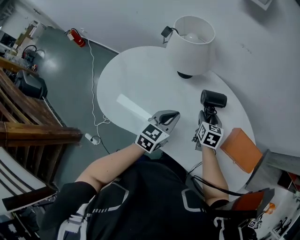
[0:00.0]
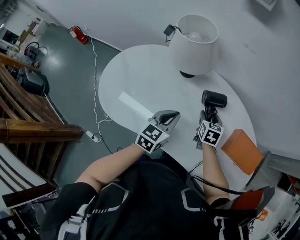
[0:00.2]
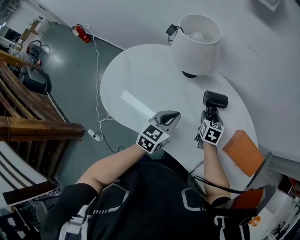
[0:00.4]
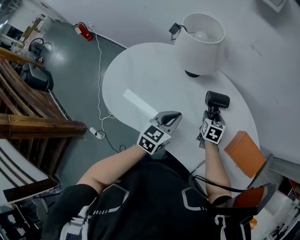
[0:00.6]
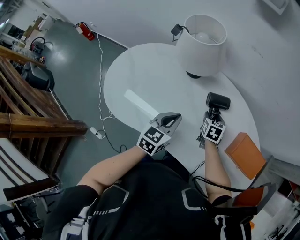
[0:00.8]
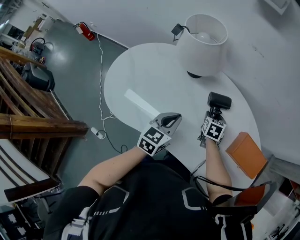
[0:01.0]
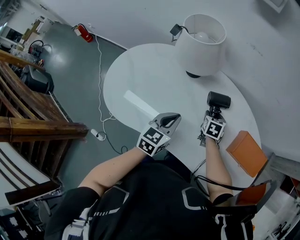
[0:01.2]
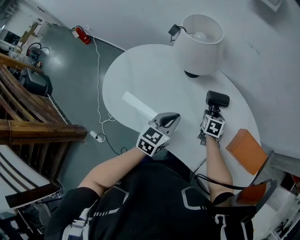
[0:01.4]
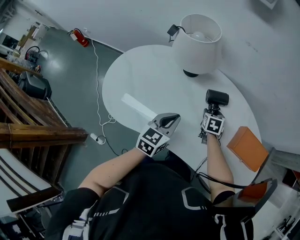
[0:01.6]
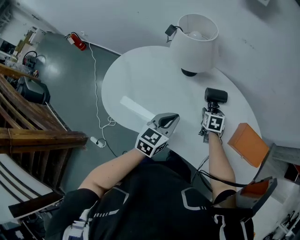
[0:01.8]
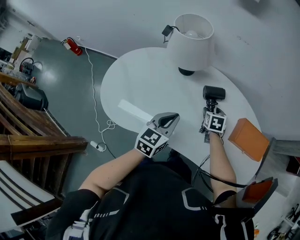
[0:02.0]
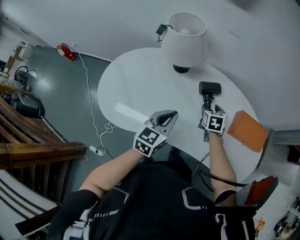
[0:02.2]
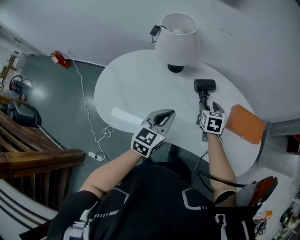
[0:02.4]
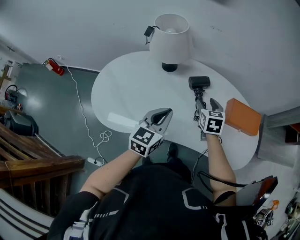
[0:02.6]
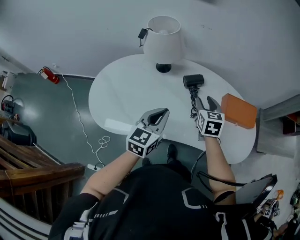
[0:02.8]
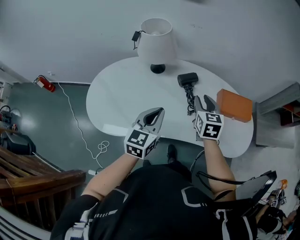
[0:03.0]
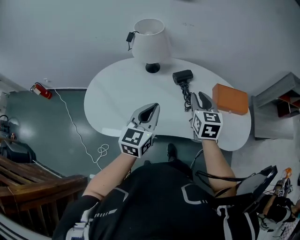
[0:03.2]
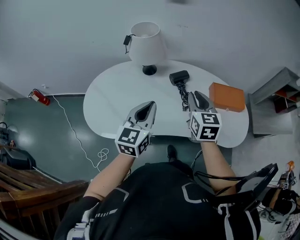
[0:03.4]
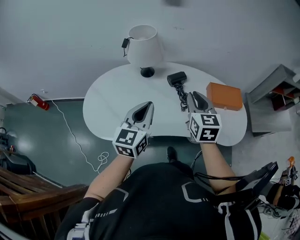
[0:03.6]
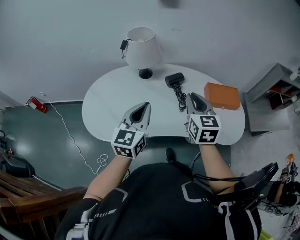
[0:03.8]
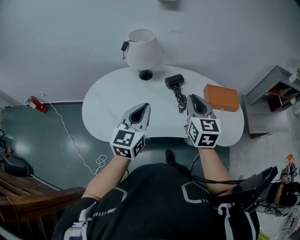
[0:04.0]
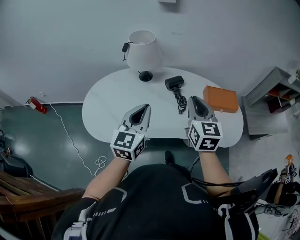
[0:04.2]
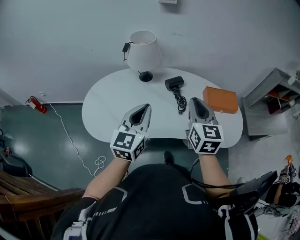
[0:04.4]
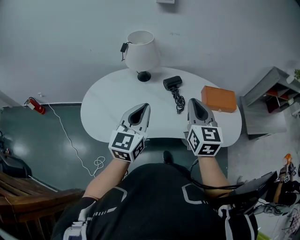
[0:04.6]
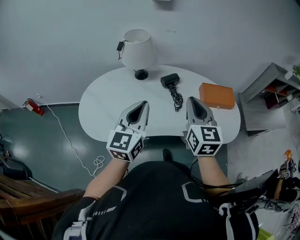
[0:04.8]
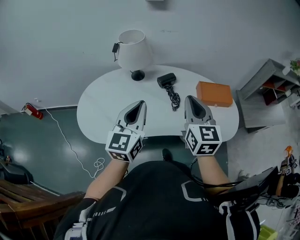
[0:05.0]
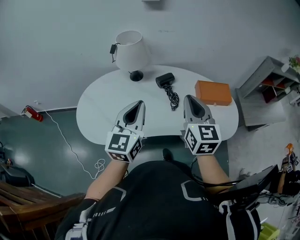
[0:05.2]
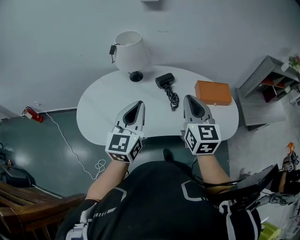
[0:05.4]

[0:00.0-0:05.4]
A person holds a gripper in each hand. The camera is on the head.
0:00.0 to 0:01.4: The right gripper travels downward by some 5 cm.
0:01.4 to 0:02.8: The right gripper shifts approximately 20 cm upward and backward, and swivels some 20 degrees, while the left gripper travels upward and backward by roughly 10 cm.
0:02.8 to 0:04.0: The right gripper moves upward and backward, approximately 20 cm, and closes. The left gripper travels upward by about 10 cm.
0:04.0 to 0:05.4: The right gripper changes place by about 5 cm.

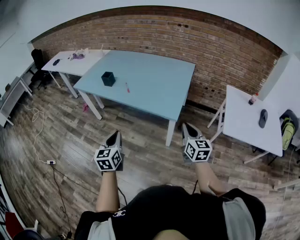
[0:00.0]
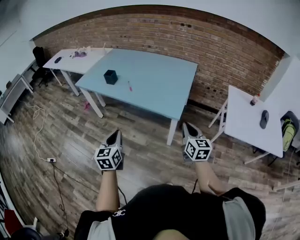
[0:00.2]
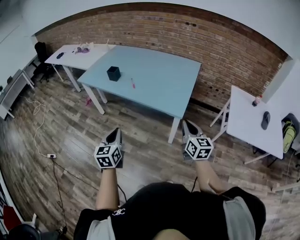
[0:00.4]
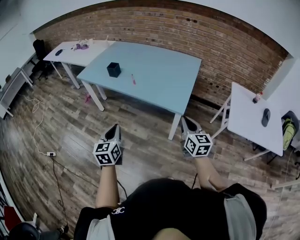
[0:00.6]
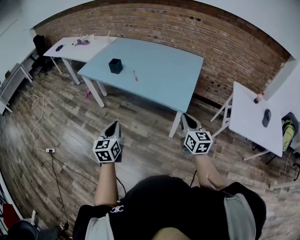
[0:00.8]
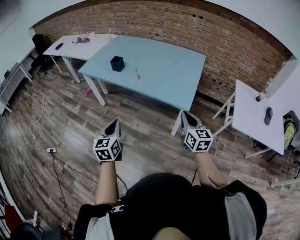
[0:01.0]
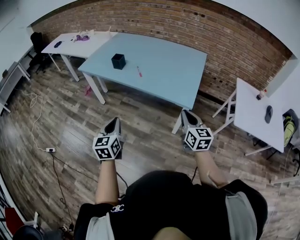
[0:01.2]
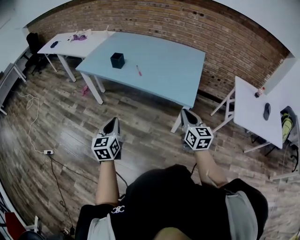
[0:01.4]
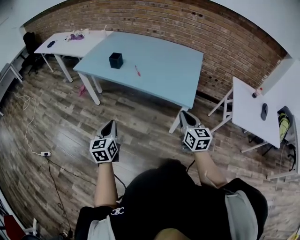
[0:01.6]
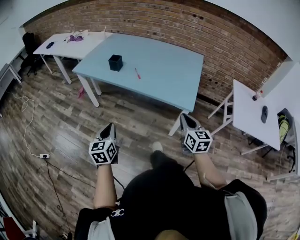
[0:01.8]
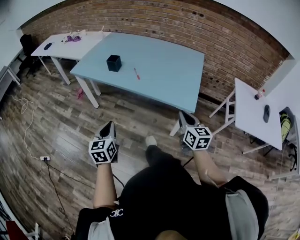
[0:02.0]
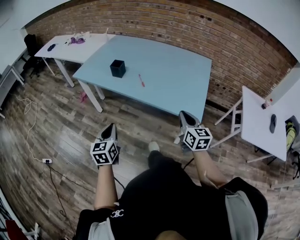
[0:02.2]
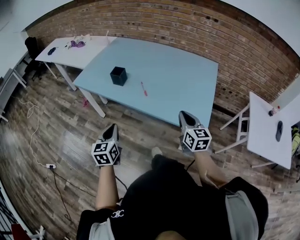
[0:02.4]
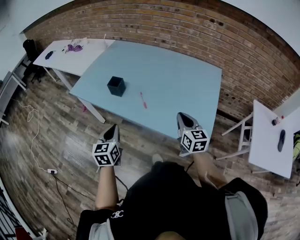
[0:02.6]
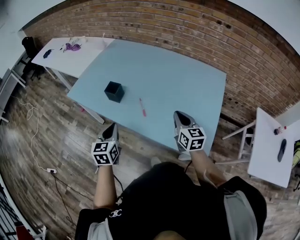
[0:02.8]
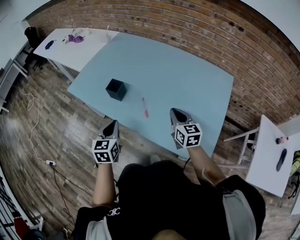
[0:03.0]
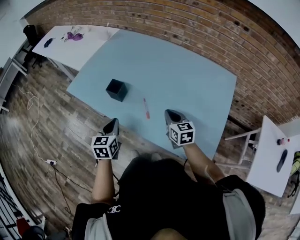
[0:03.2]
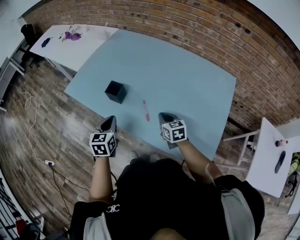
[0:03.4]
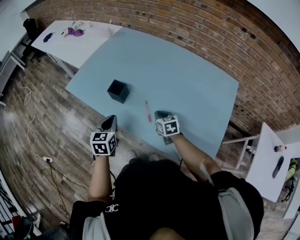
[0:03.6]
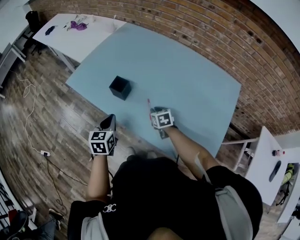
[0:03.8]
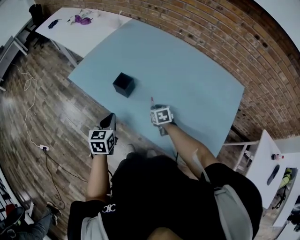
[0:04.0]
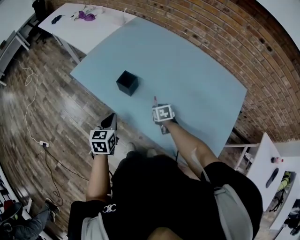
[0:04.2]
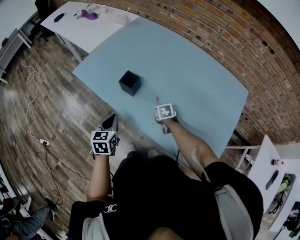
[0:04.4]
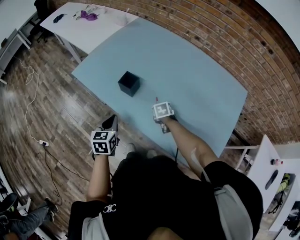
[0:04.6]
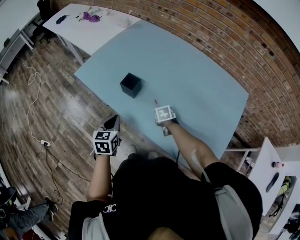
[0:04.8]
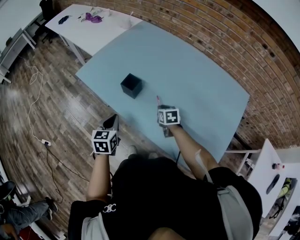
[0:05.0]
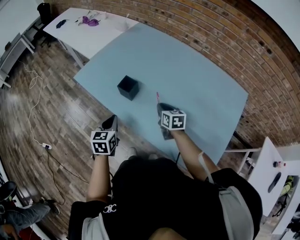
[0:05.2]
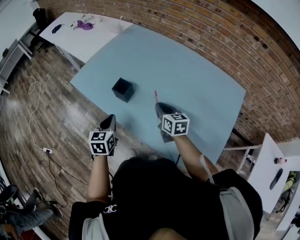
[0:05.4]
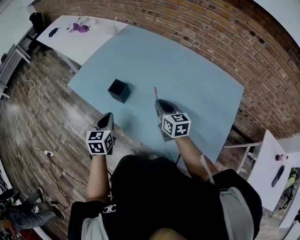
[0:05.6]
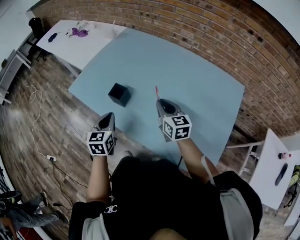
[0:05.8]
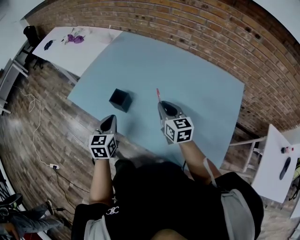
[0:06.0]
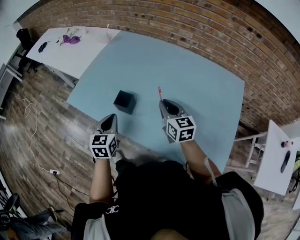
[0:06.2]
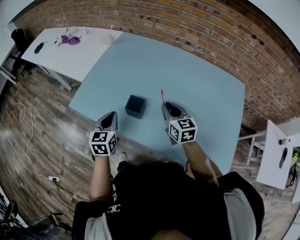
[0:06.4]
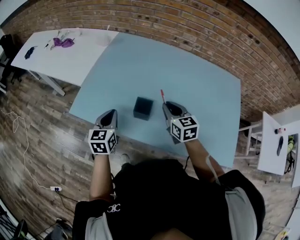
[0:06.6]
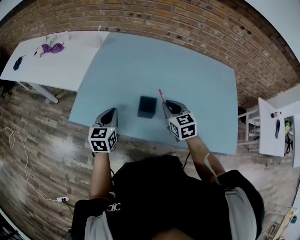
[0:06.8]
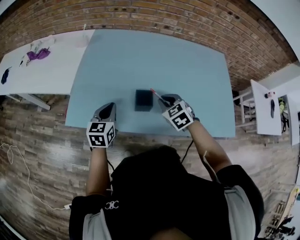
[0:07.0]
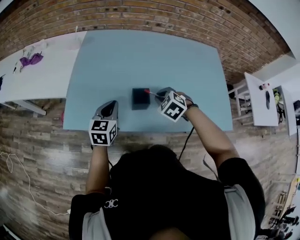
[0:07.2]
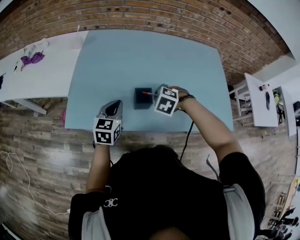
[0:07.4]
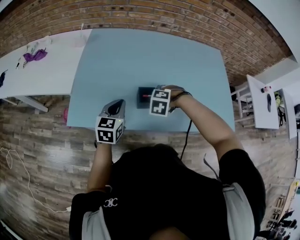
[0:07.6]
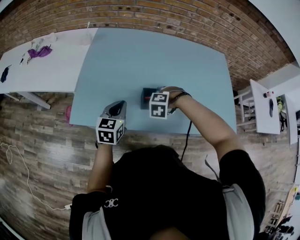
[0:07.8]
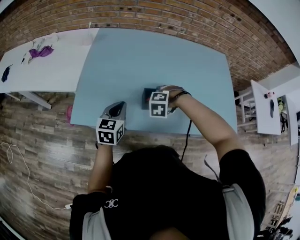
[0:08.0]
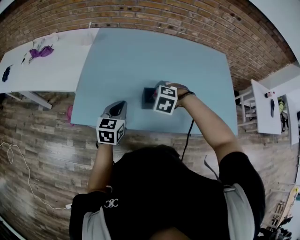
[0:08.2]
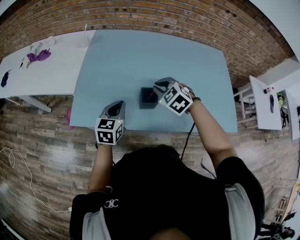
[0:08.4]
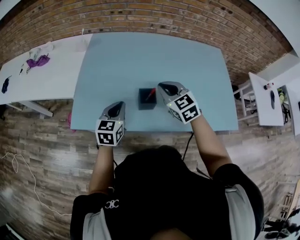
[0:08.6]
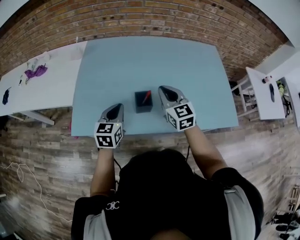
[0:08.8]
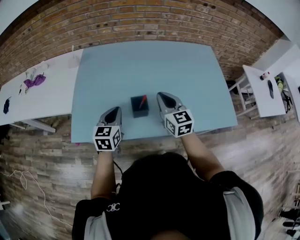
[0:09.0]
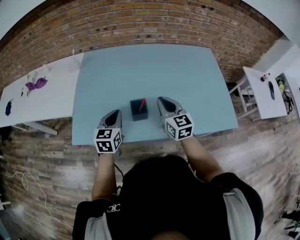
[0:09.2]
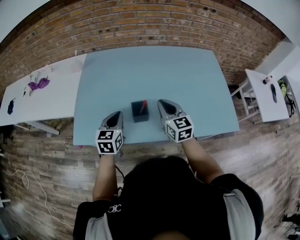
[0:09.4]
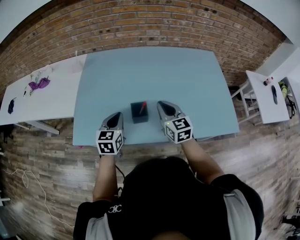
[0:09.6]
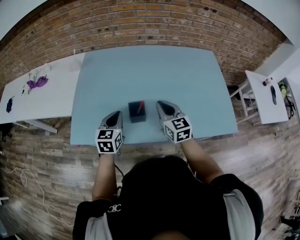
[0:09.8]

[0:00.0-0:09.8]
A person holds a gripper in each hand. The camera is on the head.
0:00.0 to 0:01.4: The grippers both shift to the left by approximately 15 cm.
0:01.4 to 0:02.8: The two grippers go some 35 cm forward.
0:02.8 to 0:04.2: The left gripper shifts some 10 cm forward, downward and to the left. Meanwhile the right gripper moves downward, forward and to the left, some 30 cm, angles its fingers downward, by some 40 degrees, and opens its fingers.
0:04.2 to 0:05.6: The right gripper heads upward, covering some 20 cm, and tilts its fingers approximately 40 degrees upward.
0:05.6 to 0:07.0: The left gripper changes place by approximately 25 cm, and rotates approximately 40 degrees. Meanwhile the right gripper moves roughly 15 cm, and swivels roughly 40 degrees.
0:07.0 to 0:08.4: The right gripper ends up some 10 cm from where it was.
0:08.4 to 0:09.8: The right gripper goes roughly 10 cm to the right, and tilts its fingers roughly 30 degrees upward; the left gripper ends up roughly 5 cm from where it was.

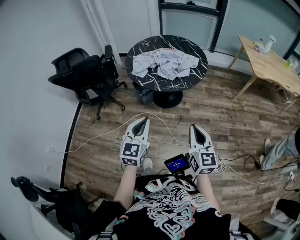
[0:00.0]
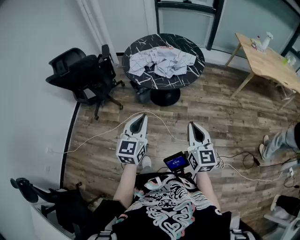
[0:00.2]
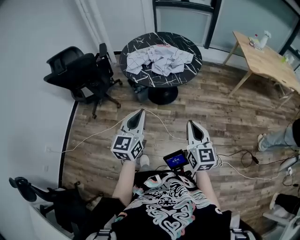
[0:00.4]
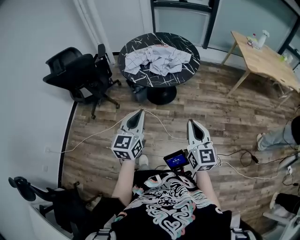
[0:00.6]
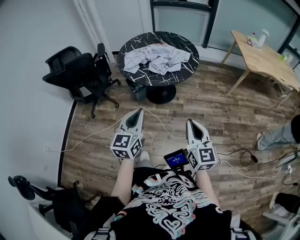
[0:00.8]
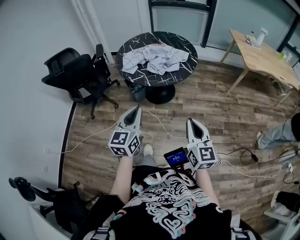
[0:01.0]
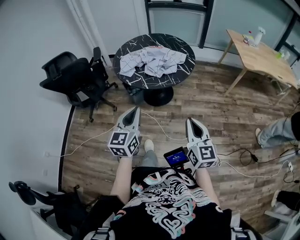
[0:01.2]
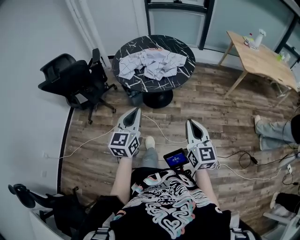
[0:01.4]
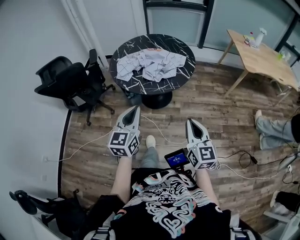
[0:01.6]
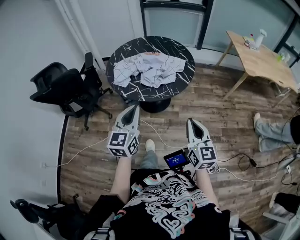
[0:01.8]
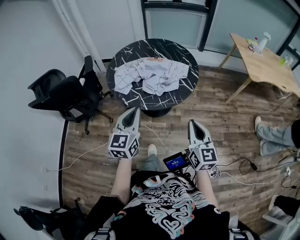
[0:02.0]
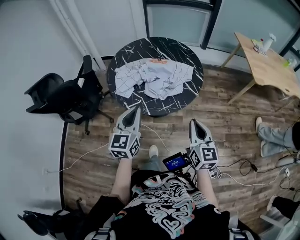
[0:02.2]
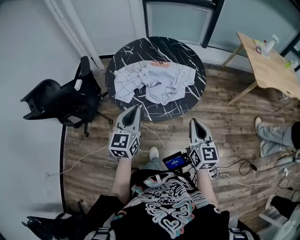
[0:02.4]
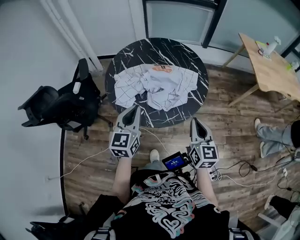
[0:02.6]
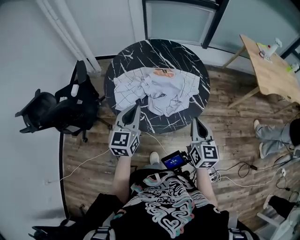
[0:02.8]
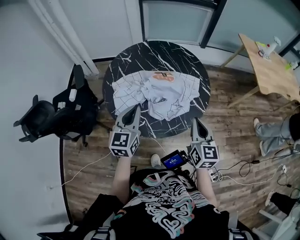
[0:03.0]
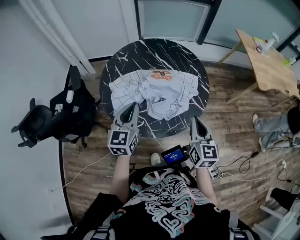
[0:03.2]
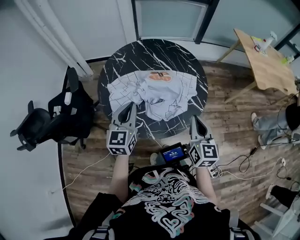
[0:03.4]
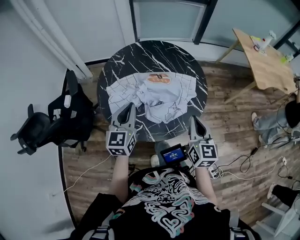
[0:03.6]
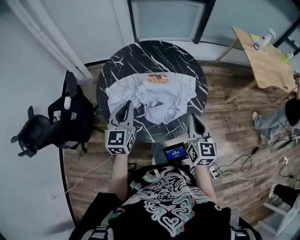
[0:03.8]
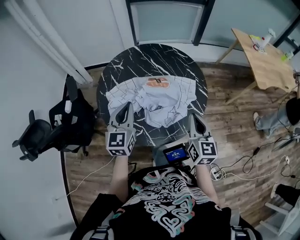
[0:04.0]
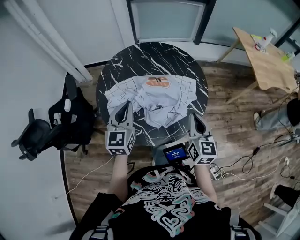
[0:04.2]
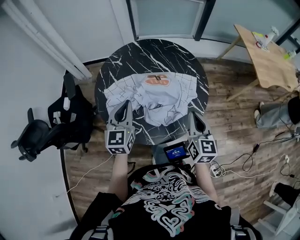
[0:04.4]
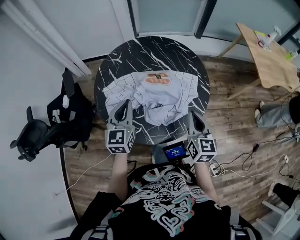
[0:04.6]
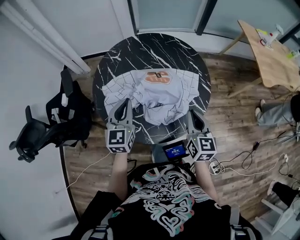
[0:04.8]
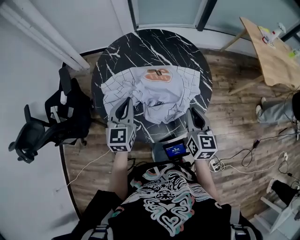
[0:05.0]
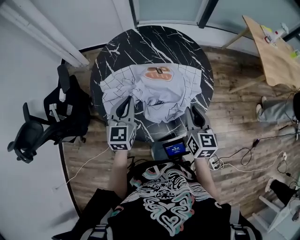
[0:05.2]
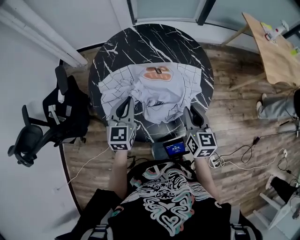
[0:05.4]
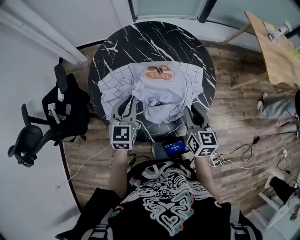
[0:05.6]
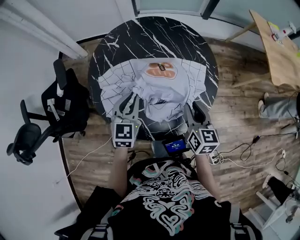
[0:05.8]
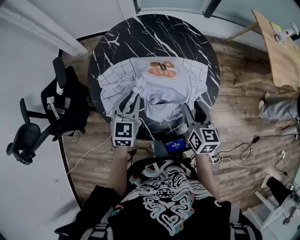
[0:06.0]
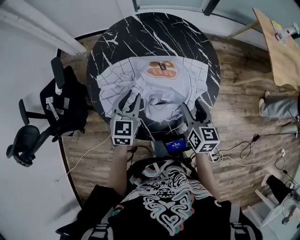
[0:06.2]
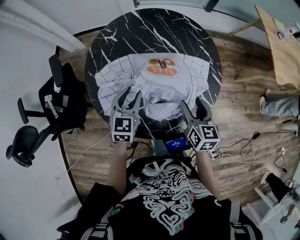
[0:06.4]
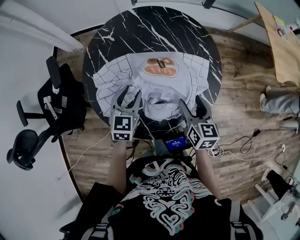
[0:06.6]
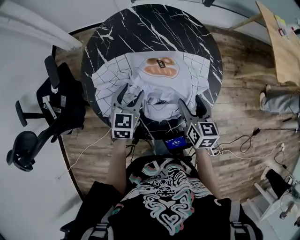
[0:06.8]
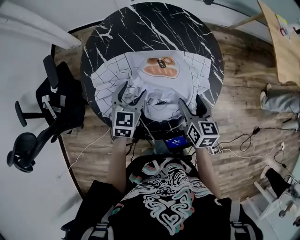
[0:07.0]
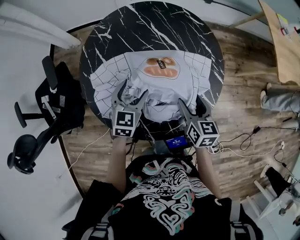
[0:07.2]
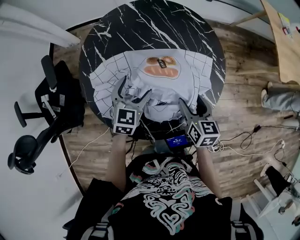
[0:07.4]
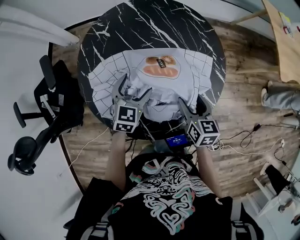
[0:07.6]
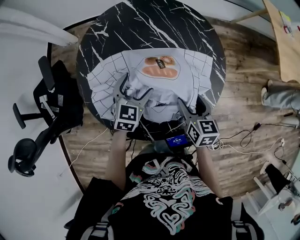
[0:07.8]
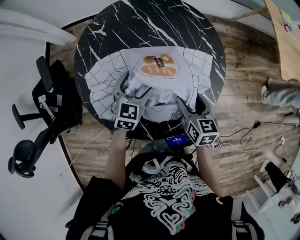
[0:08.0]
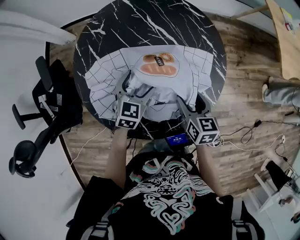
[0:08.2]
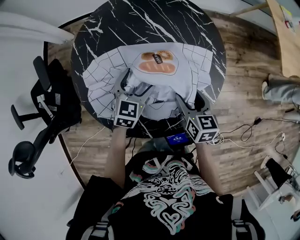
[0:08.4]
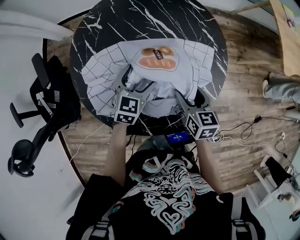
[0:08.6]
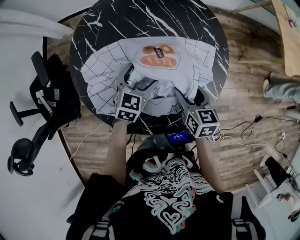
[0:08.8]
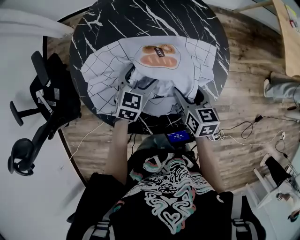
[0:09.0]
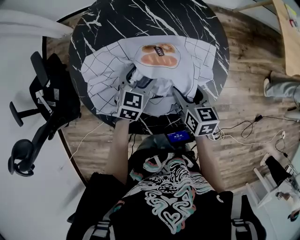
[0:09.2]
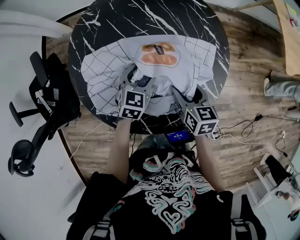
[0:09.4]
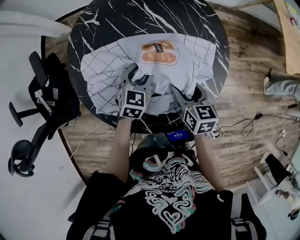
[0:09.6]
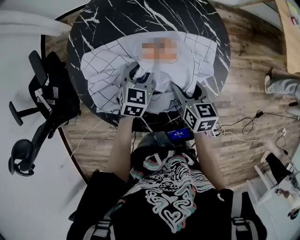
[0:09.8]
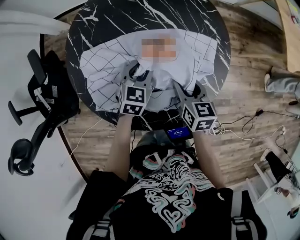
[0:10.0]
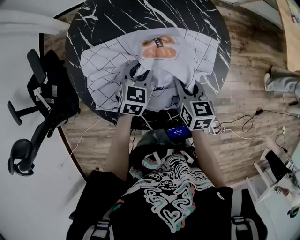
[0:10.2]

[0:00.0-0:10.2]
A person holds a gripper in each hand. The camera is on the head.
0:00.0 to 0:01.4: The right gripper changes place by some 5 cm. Meanwhile the left gripper changes place by approximately 5 cm.
0:01.4 to 0:03.0: The grippers both shift forward by about 40 cm.
0:03.0 to 0:04.4: Both grippers travel together forward, some 5 cm.
0:04.4 to 0:05.8: The right gripper travels downward and forward by approximately 10 cm. The left gripper goes roughly 10 cm downward.
0:05.8 to 0:07.2: The two grippers go approximately 5 cm downward. The right gripper opens up; the left gripper opens its fingers.
0:07.2 to 0:08.8: The left gripper heads downward, covering approximately 5 cm.
0:08.8 to 0:10.2: The right gripper closes. Meanwhile the left gripper closes.
